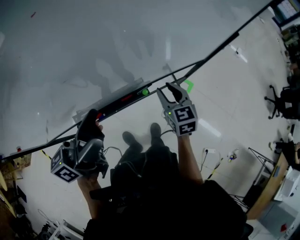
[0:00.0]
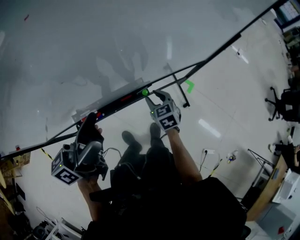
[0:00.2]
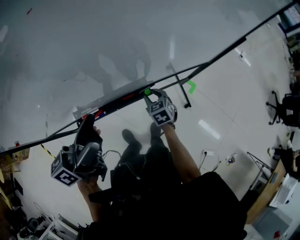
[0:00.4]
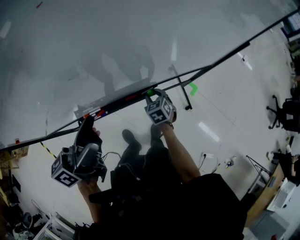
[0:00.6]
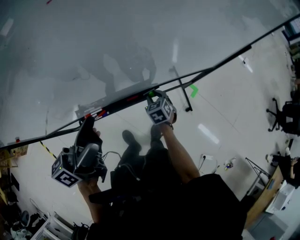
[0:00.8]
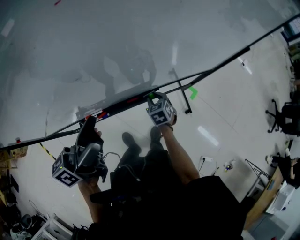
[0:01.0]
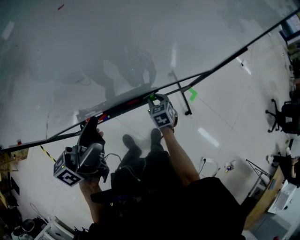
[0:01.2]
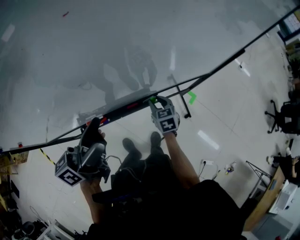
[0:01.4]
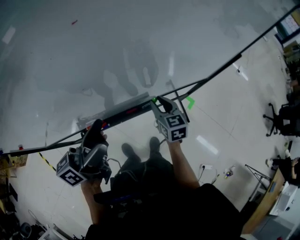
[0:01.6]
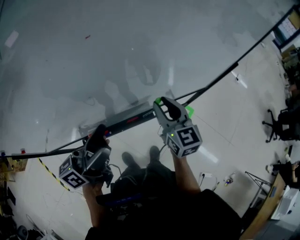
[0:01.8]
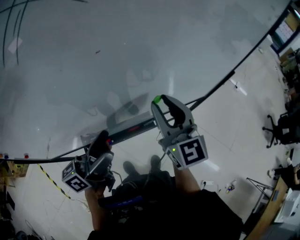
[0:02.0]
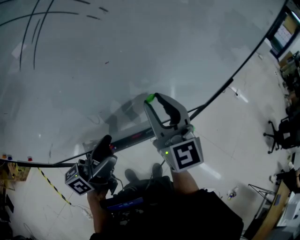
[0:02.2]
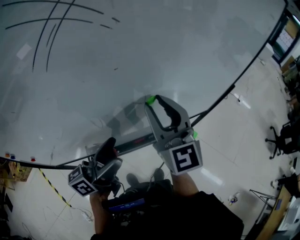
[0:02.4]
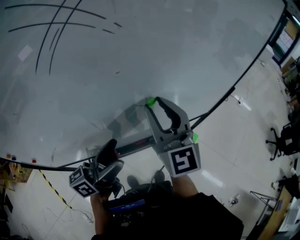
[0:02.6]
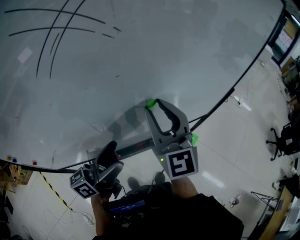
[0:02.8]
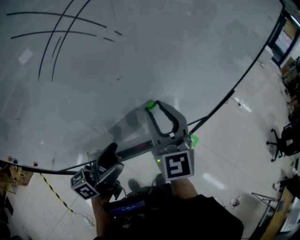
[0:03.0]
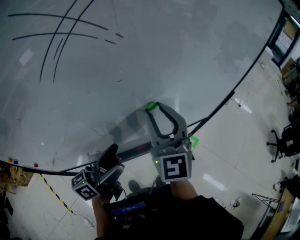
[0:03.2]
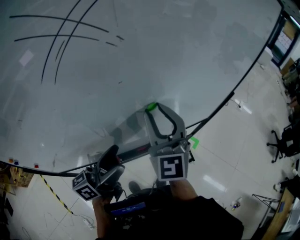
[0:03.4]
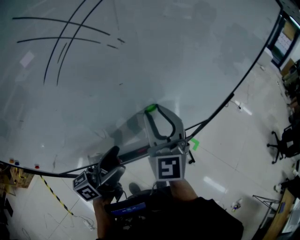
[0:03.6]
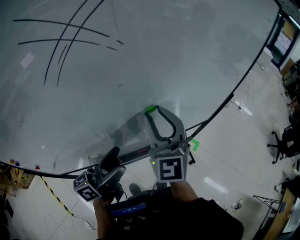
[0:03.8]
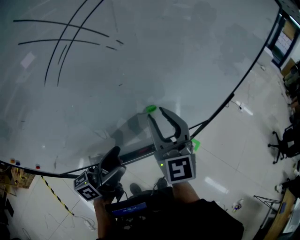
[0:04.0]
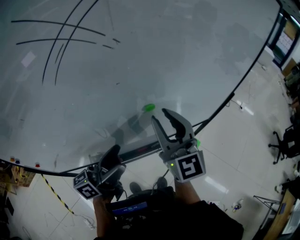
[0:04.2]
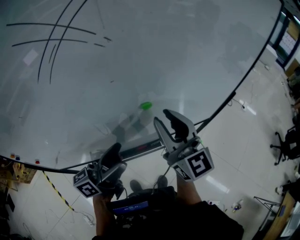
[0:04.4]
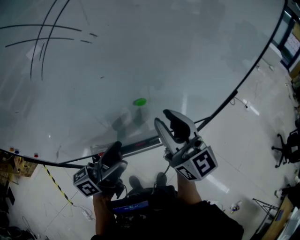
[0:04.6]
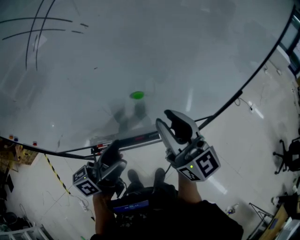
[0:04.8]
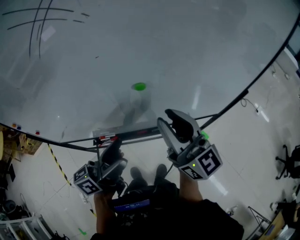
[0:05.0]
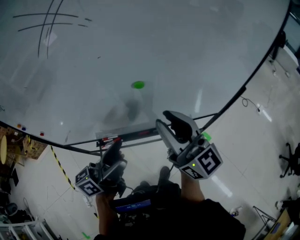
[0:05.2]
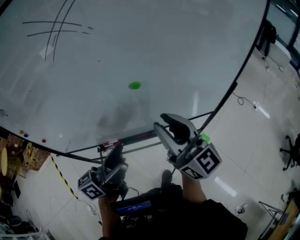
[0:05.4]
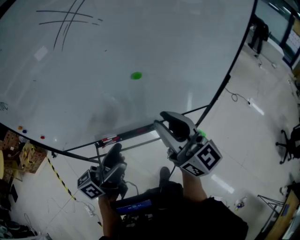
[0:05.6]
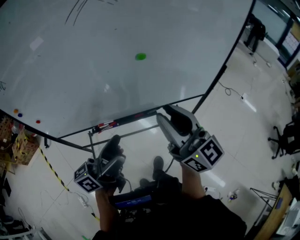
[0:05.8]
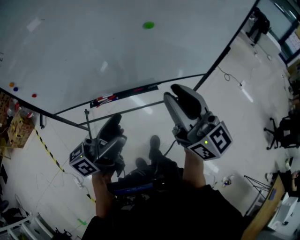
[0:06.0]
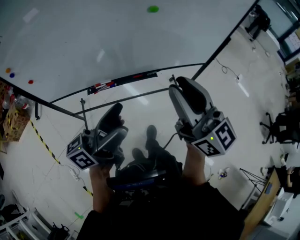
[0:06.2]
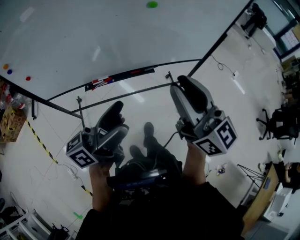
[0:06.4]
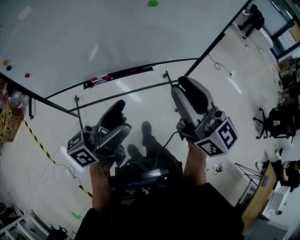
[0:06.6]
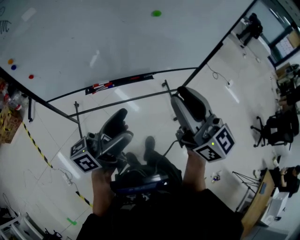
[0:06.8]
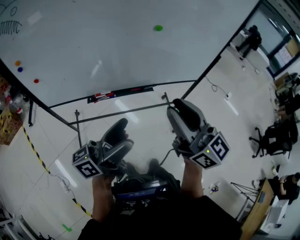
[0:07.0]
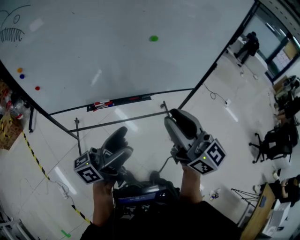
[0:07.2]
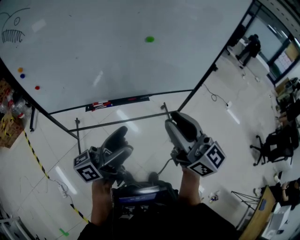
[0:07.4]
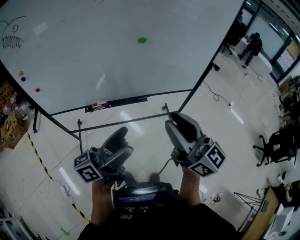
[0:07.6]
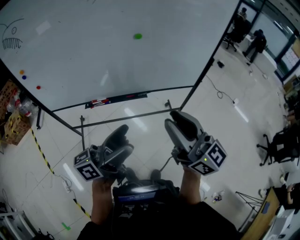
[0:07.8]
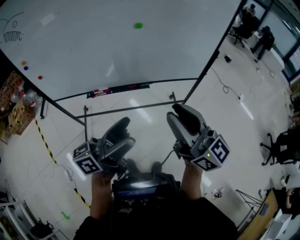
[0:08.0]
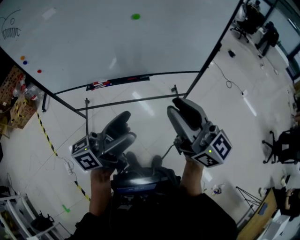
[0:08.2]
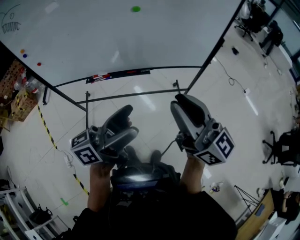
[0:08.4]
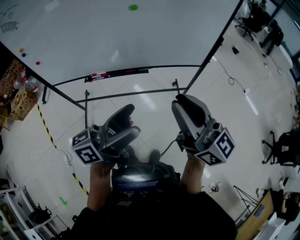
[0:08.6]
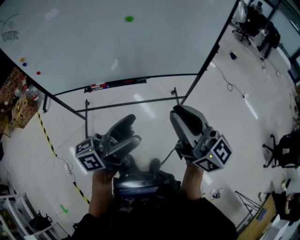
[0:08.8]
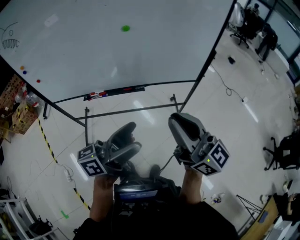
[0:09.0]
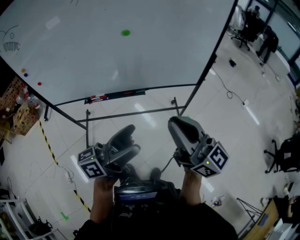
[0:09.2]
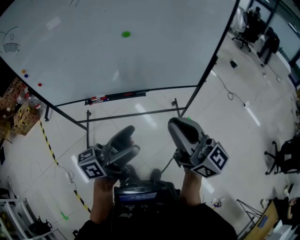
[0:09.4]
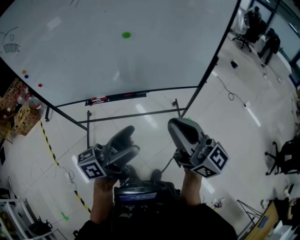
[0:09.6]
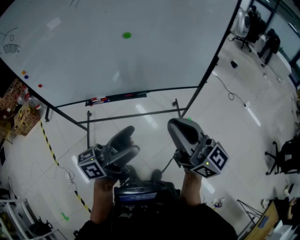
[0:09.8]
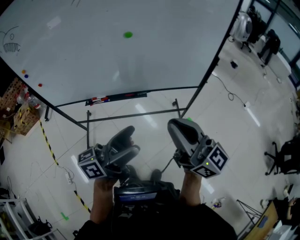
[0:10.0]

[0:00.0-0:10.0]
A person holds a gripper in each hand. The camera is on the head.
0:00.0 to 0:01.4: The right gripper shifts roughly 15 cm downward and to the left.
0:01.4 to 0:02.8: The right gripper heads upward, covering roughly 40 cm, and tips its fingers upward by roughly 50 degrees.
0:02.8 to 0:04.2: The grippers stay close to where they were, moving slightly.
0:04.2 to 0:05.8: The grippers both shift backward by approximately 20 cm. The right gripper changes its angle by about 30 degrees.
0:05.8 to 0:07.2: Both grippers move backward, approximately 10 cm.
0:07.2 to 0:08.6: Both grippers travel together to the right, approximately 15 cm.
0:08.6 to 0:10.0: There are only small adjustments of the grippers.

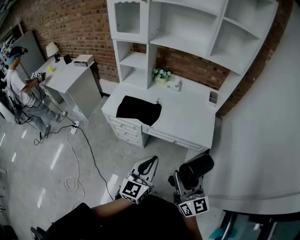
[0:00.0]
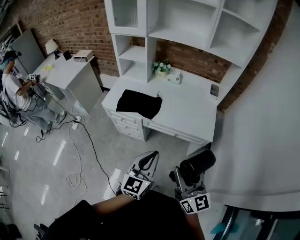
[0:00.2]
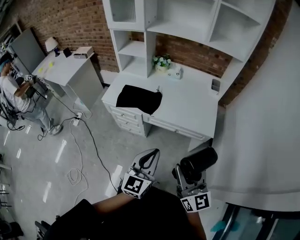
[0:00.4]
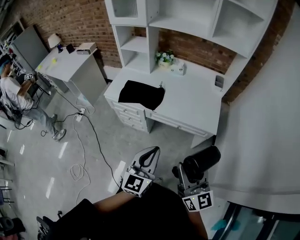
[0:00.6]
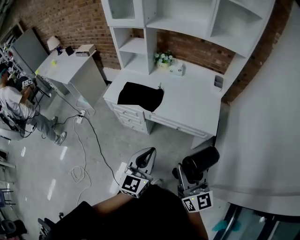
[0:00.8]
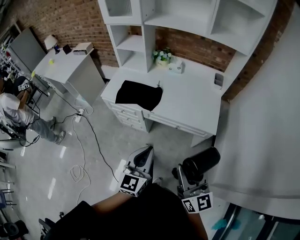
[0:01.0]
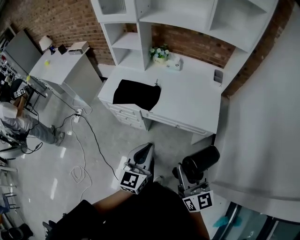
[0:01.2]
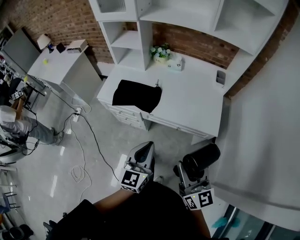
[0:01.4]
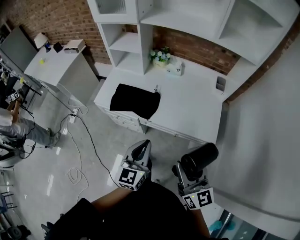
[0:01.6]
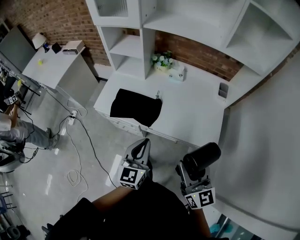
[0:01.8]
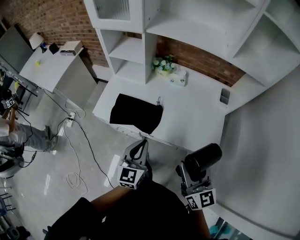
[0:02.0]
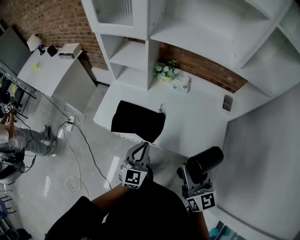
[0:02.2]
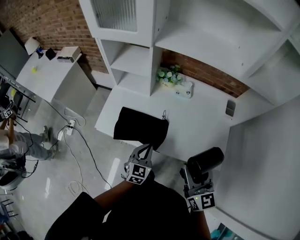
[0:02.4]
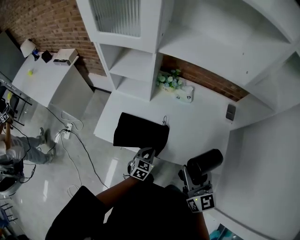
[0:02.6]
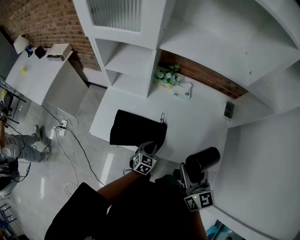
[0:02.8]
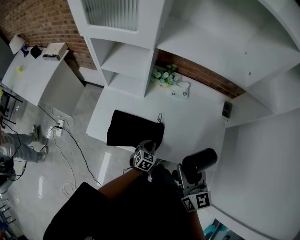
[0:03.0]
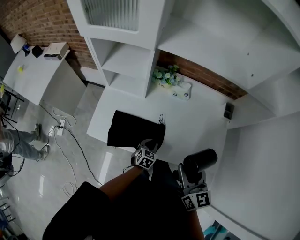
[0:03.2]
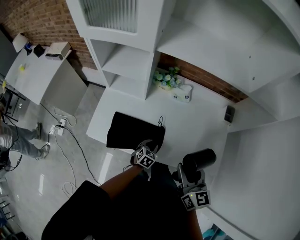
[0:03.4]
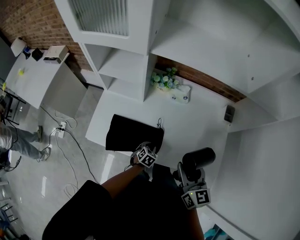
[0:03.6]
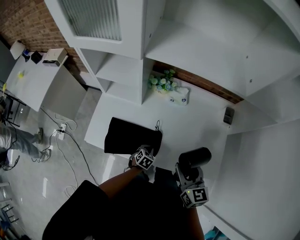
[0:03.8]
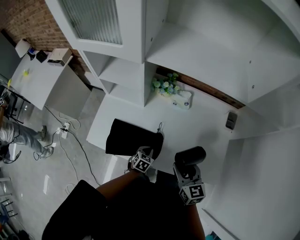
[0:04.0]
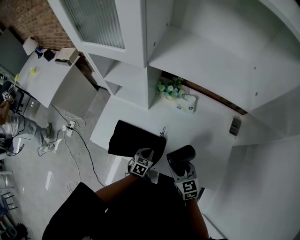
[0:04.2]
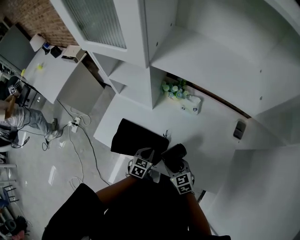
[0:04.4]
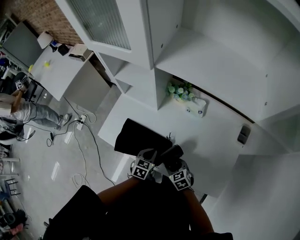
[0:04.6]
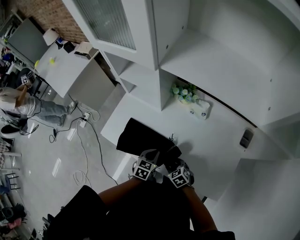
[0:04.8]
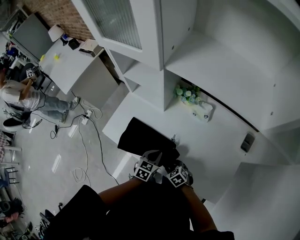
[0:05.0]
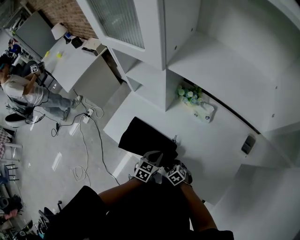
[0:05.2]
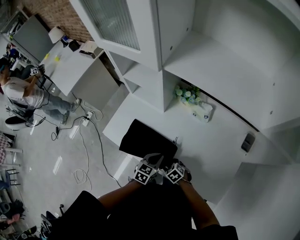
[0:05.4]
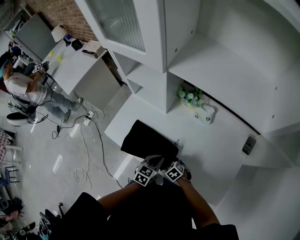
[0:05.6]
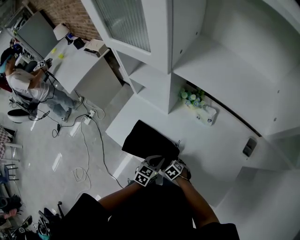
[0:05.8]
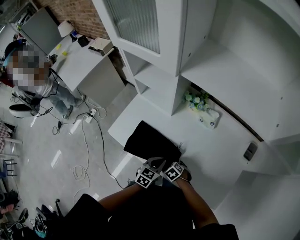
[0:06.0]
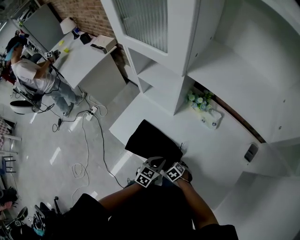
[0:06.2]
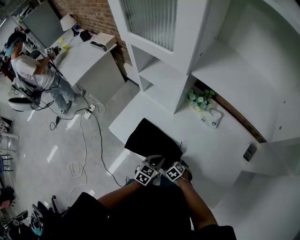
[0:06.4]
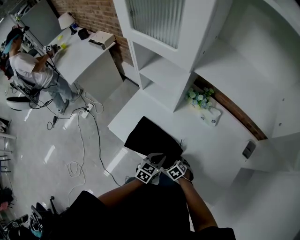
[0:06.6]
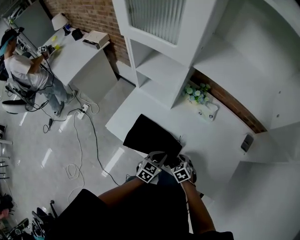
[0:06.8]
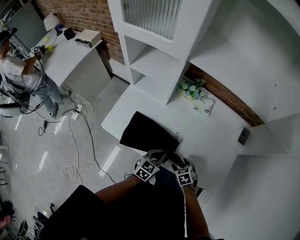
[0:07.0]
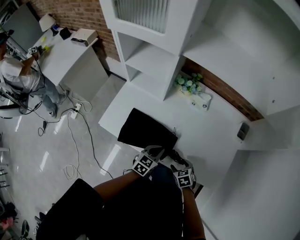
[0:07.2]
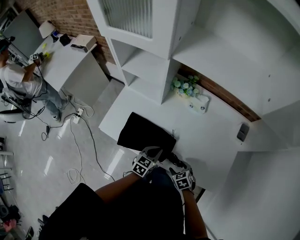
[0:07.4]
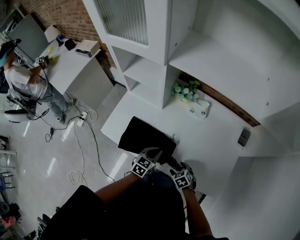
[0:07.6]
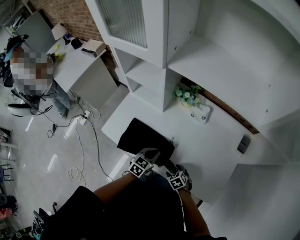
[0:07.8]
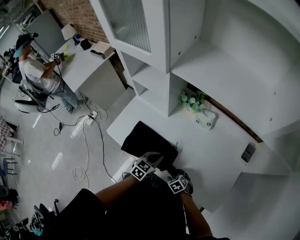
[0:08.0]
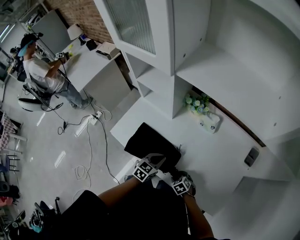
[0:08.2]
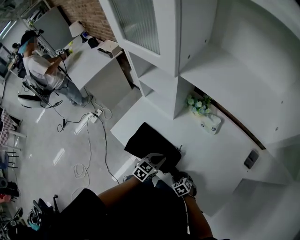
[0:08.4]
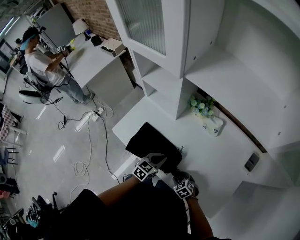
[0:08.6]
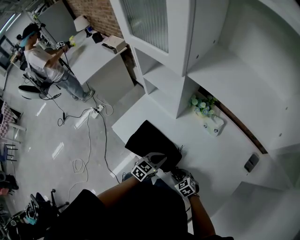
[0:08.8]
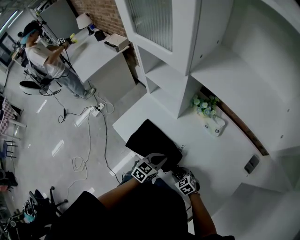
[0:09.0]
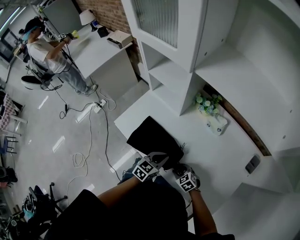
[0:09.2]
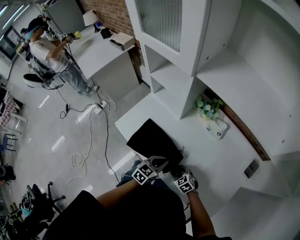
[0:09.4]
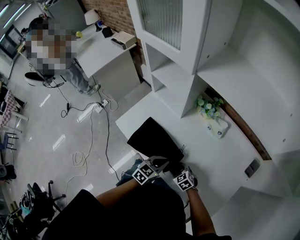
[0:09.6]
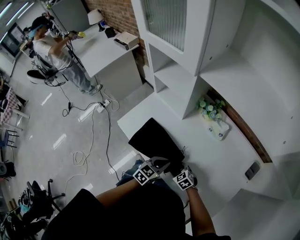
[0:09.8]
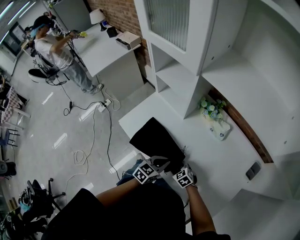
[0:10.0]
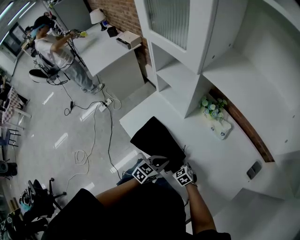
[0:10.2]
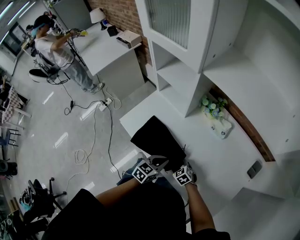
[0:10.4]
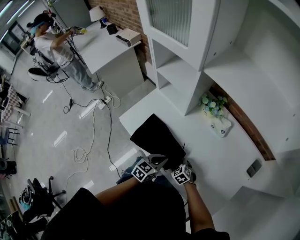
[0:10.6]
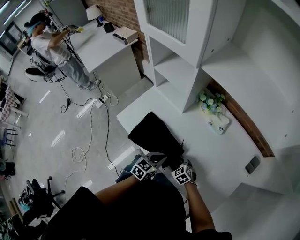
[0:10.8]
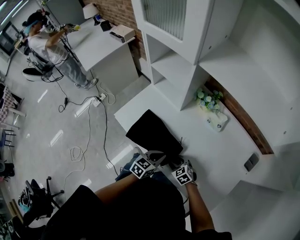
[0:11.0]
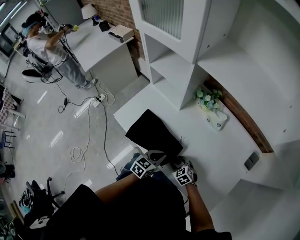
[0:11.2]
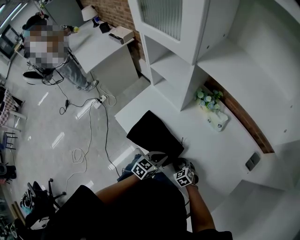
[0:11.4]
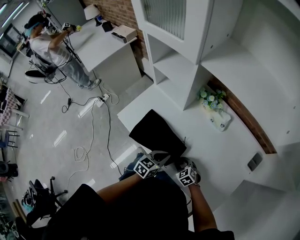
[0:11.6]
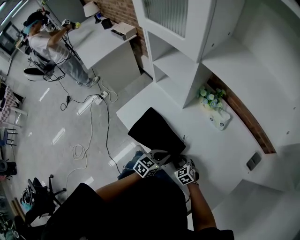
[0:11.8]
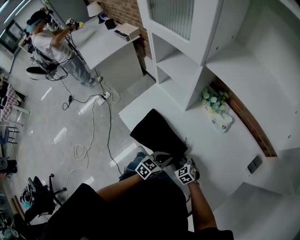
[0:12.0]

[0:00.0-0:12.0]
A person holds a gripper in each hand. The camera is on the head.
0:00.0 to 0:01.6: Both grippers move forward, approximately 15 cm.
0:01.6 to 0:03.0: The right gripper goes roughly 30 cm forward and to the left, while the left gripper travels forward and downward by roughly 40 cm, and angles its fingers downward, by roughly 30 degrees.
0:03.0 to 0:04.4: The right gripper goes some 25 cm downward, and tilts its fingers roughly 30 degrees downward, while the left gripper goes downward and returns, some 5 cm each way, and opens and closes again.
0:04.4 to 0:06.0: The right gripper shifts roughly 15 cm downward, and rotates roughly 40 degrees.
0:06.0 to 0:07.6: The right gripper changes place by roughly 10 cm, and turns by about 20 degrees.
0:07.6 to 0:09.0: The right gripper turns by some 30 degrees.
0:09.0 to 0:10.4: The right gripper shifts by some 5 cm.
0:10.4 to 0:12.0: There are only small adjustments of the grippers.

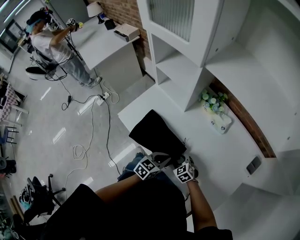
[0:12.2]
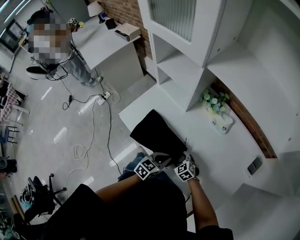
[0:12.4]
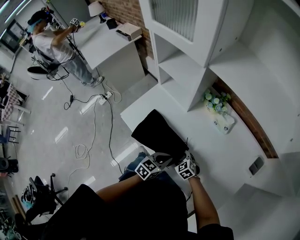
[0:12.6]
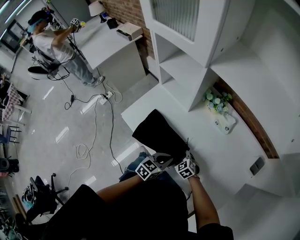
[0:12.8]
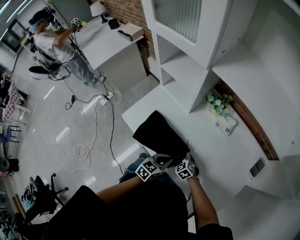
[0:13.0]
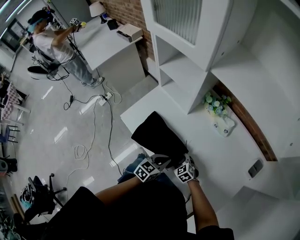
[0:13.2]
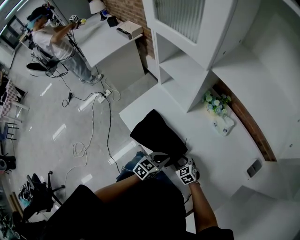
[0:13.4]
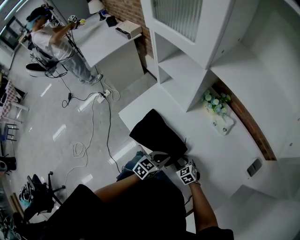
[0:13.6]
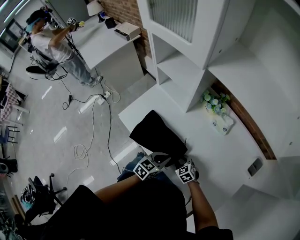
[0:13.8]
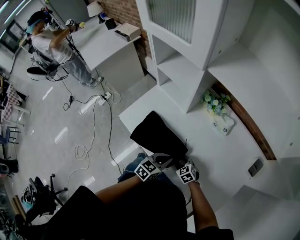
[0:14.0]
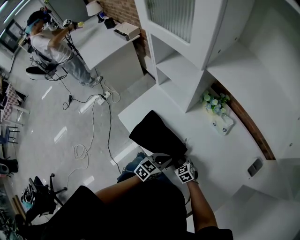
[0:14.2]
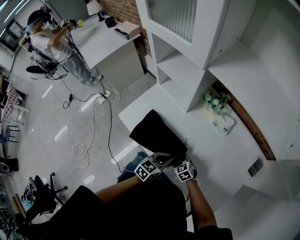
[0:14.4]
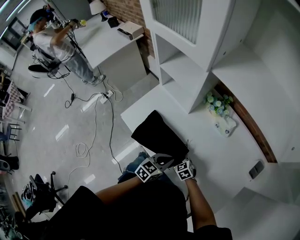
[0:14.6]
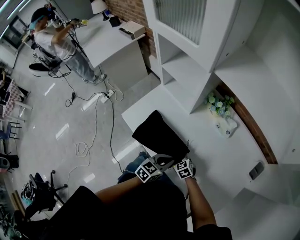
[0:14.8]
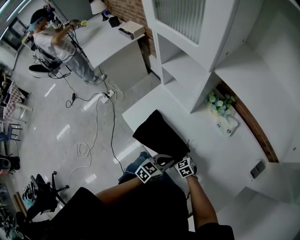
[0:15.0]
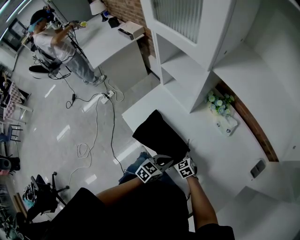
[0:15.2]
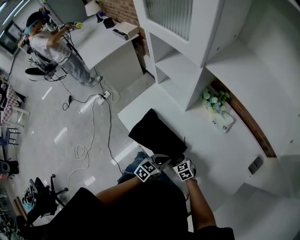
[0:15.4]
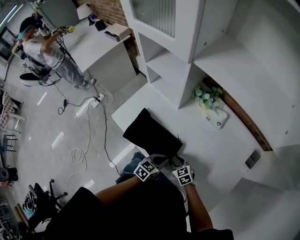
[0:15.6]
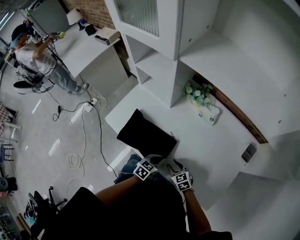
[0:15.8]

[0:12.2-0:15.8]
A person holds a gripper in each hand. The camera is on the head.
0:12.2 to 0:14.0: There are only small adjustments of the grippers.
0:14.0 to 0:15.8: The right gripper travels backward by some 5 cm, while the left gripper heads downward, covering about 5 cm.
